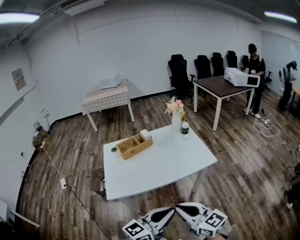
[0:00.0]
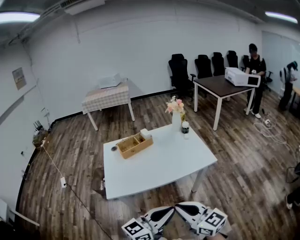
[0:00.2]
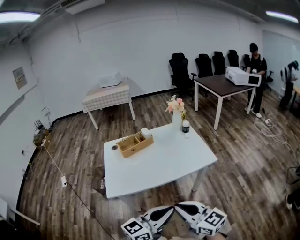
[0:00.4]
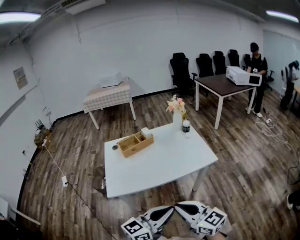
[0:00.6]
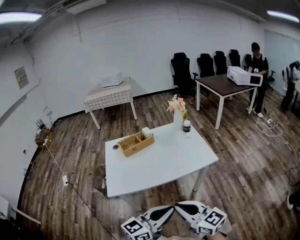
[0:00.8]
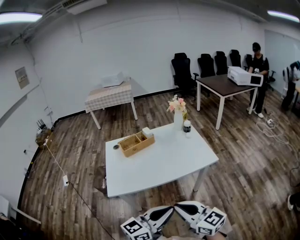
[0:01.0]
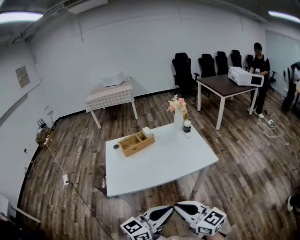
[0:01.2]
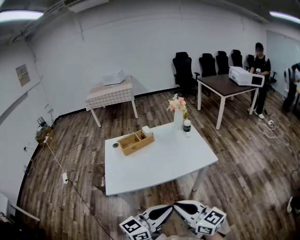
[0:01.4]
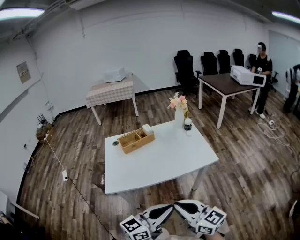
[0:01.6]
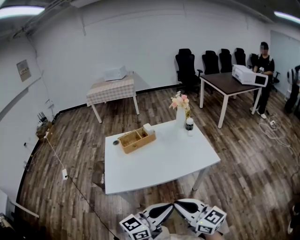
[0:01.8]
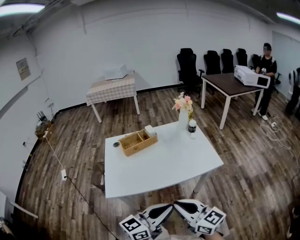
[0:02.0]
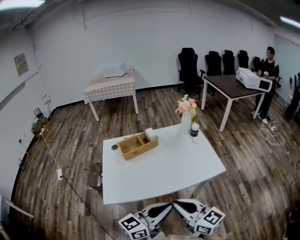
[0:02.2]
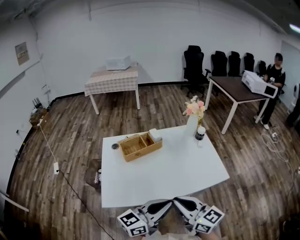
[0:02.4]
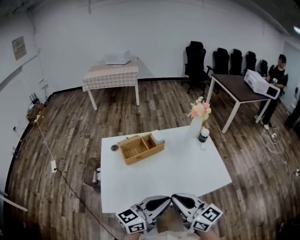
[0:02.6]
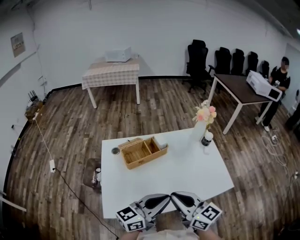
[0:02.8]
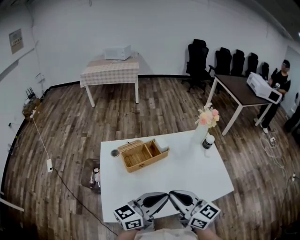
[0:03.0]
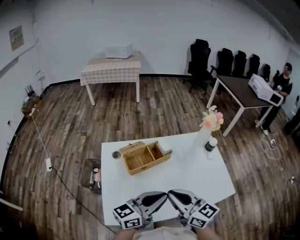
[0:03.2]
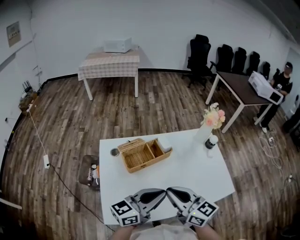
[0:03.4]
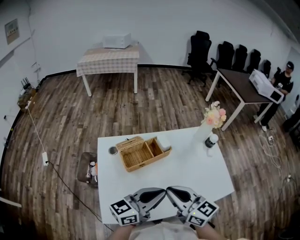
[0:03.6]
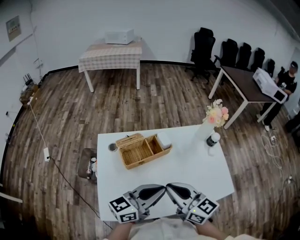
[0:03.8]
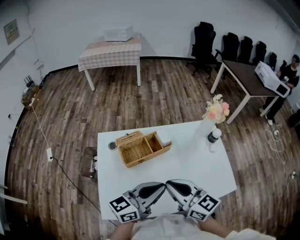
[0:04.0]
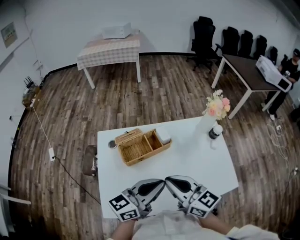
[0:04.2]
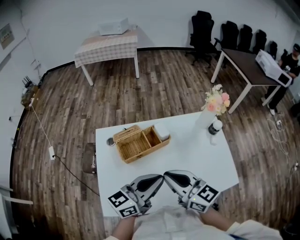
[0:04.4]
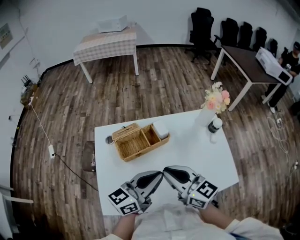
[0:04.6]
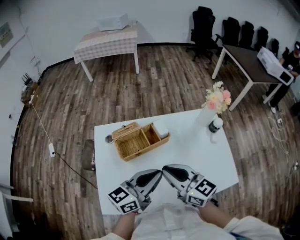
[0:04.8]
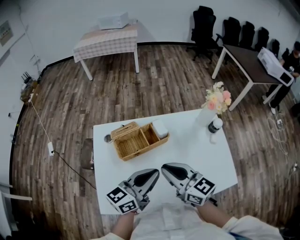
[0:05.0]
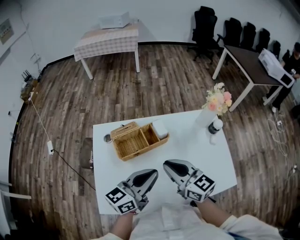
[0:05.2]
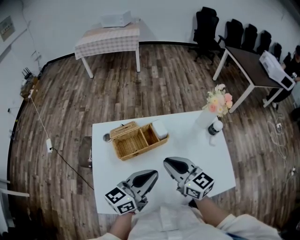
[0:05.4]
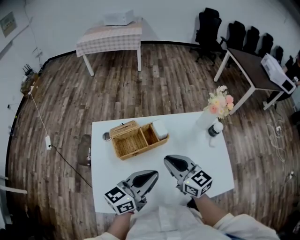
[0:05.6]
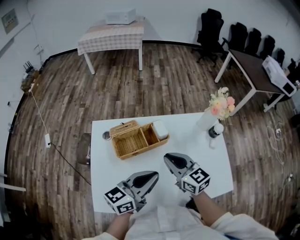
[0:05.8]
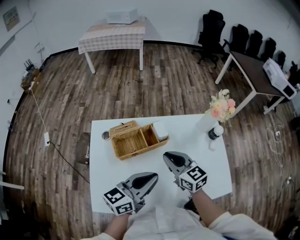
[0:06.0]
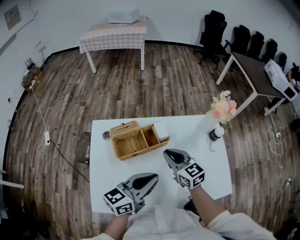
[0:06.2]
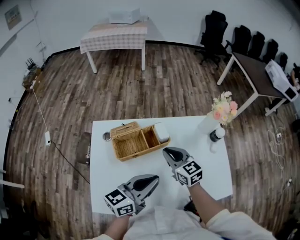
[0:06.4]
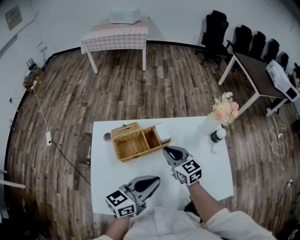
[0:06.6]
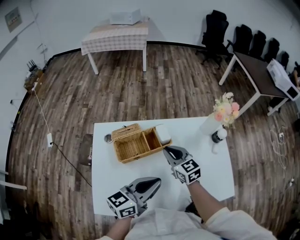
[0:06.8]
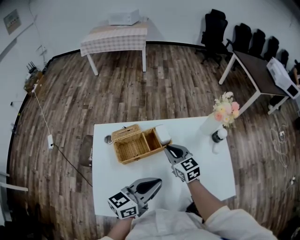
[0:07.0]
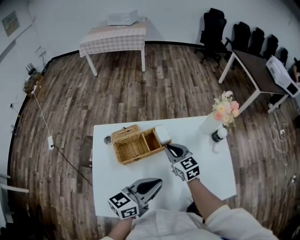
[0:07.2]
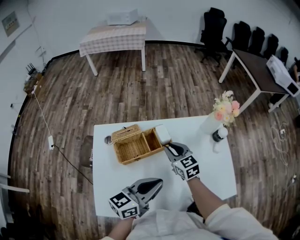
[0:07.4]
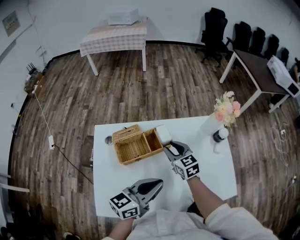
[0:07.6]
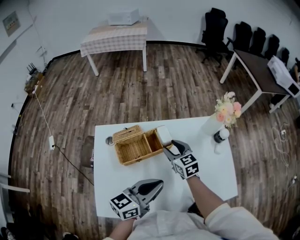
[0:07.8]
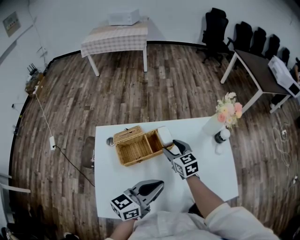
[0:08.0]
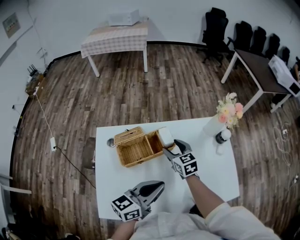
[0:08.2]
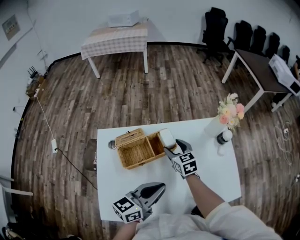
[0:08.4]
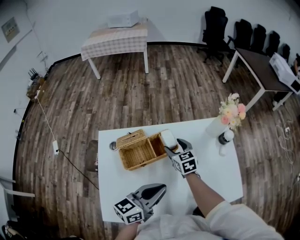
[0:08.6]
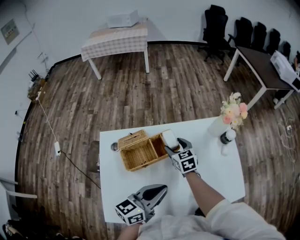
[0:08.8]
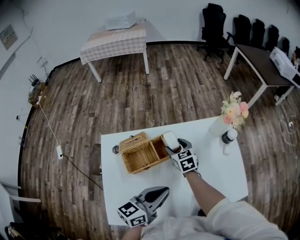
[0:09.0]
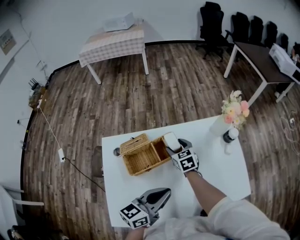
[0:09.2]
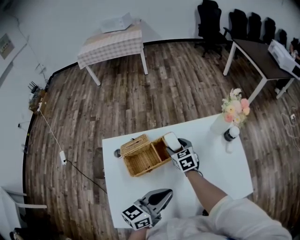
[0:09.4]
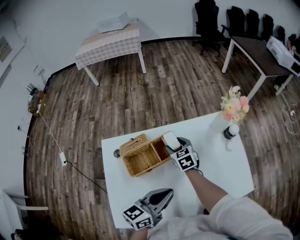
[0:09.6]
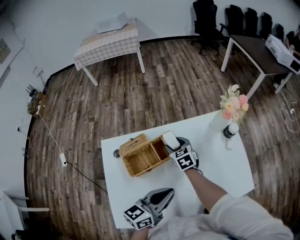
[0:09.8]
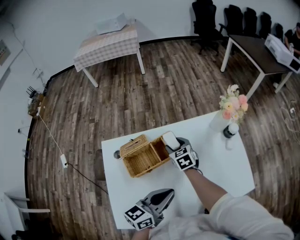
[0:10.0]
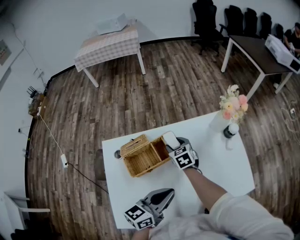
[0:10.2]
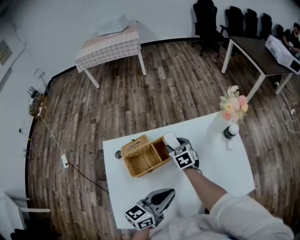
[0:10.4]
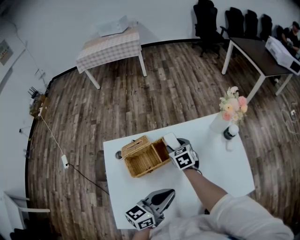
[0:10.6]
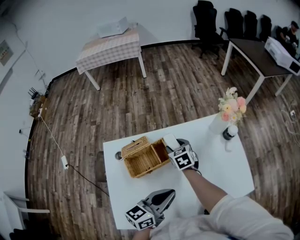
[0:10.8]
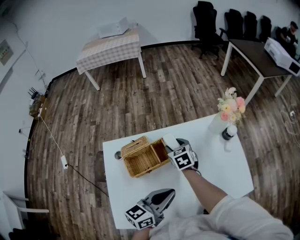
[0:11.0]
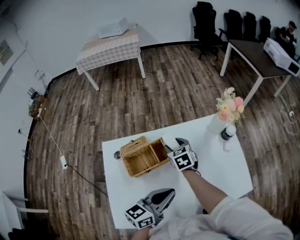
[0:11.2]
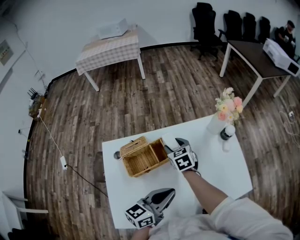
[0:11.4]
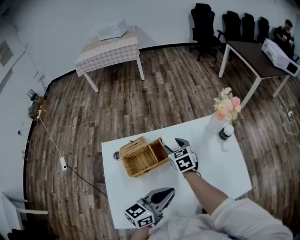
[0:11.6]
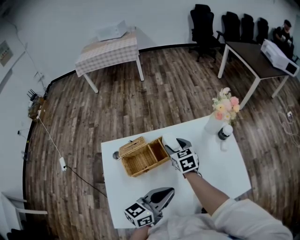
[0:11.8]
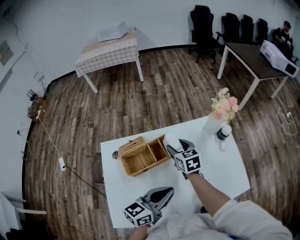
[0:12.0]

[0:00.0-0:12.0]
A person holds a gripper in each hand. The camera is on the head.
0:00.0 to 0:01.6: There are only small adjustments of the grippers.
0:01.6 to 0:03.0: Both grippers move forward and to the left, roughly 35 cm.
0:03.0 to 0:04.4: The grippers both shift forward by roughly 10 cm.
0:04.4 to 0:06.0: The right gripper moves forward and downward, about 15 cm.
0:06.0 to 0:07.6: The right gripper travels forward and downward by about 10 cm, and opens.
0:07.6 to 0:09.0: The right gripper goes approximately 10 cm forward and downward, and opens its fingers.
0:09.0 to 0:10.4: The grippers move only a little.
0:10.4 to 0:12.0: The right gripper moves upward, about 5 cm.

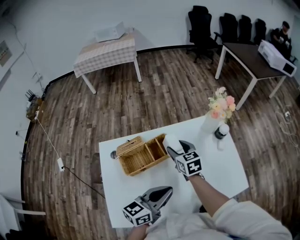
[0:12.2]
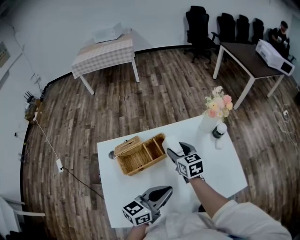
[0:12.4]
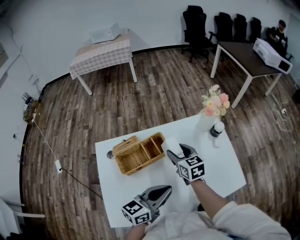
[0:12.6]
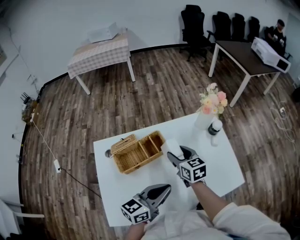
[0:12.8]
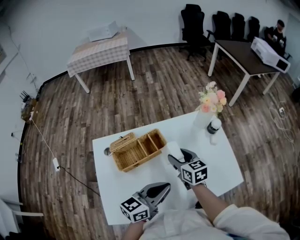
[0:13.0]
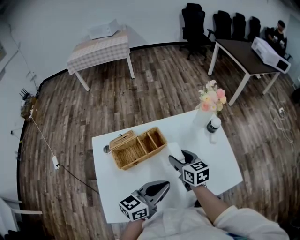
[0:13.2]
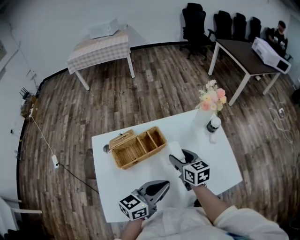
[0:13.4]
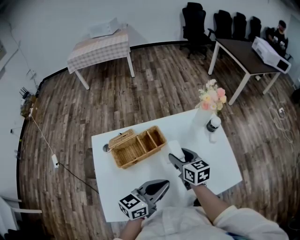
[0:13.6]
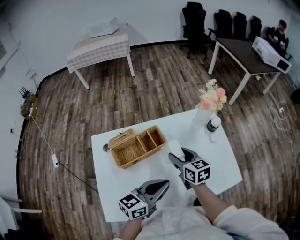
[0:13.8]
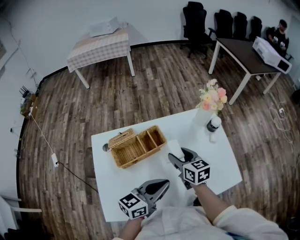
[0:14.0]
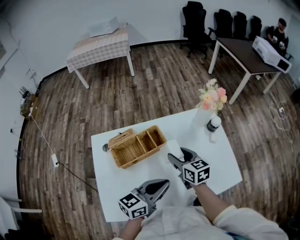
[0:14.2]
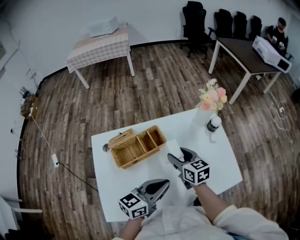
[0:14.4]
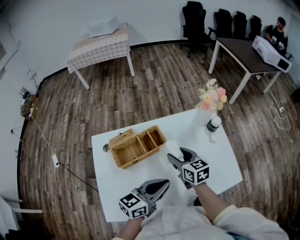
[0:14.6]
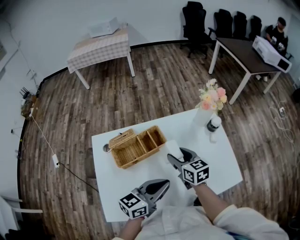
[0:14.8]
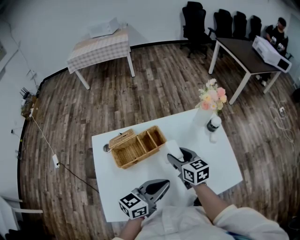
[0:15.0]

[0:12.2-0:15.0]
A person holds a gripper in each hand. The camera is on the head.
0:12.2 to 0:13.6: The right gripper heads backward and to the right, covering roughly 10 cm.
0:13.6 to 0:15.0: Neither gripper changes place.

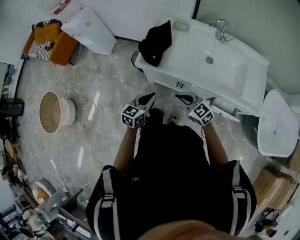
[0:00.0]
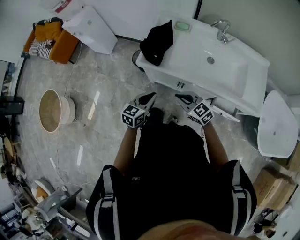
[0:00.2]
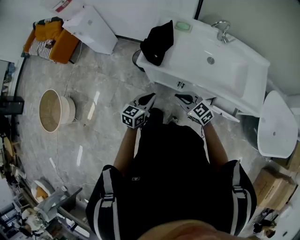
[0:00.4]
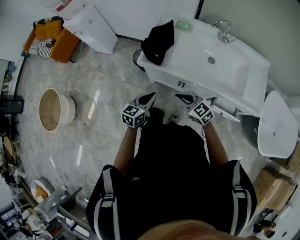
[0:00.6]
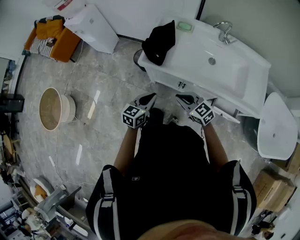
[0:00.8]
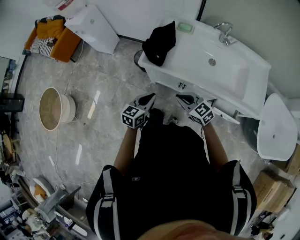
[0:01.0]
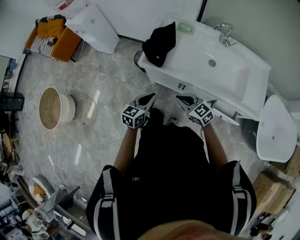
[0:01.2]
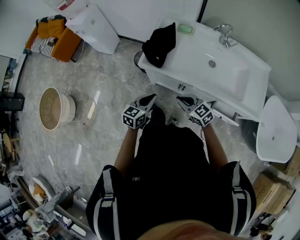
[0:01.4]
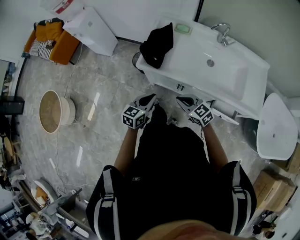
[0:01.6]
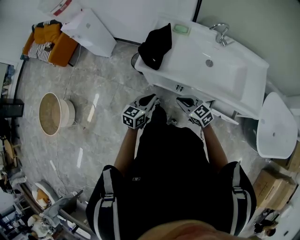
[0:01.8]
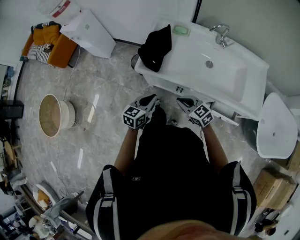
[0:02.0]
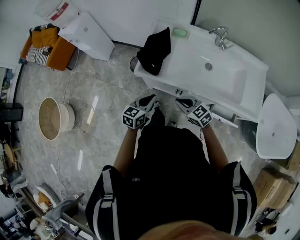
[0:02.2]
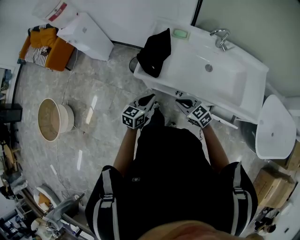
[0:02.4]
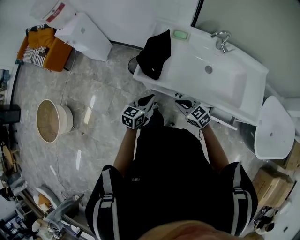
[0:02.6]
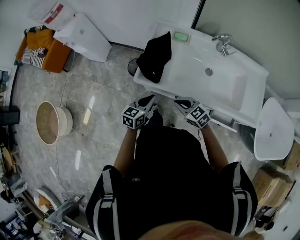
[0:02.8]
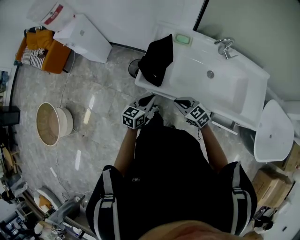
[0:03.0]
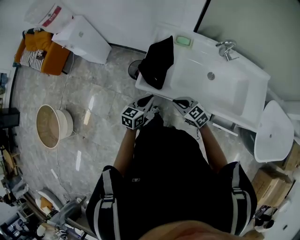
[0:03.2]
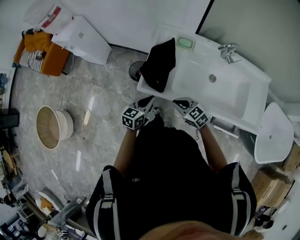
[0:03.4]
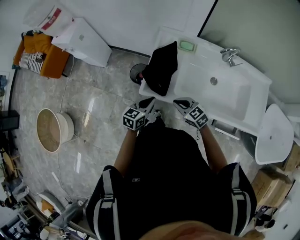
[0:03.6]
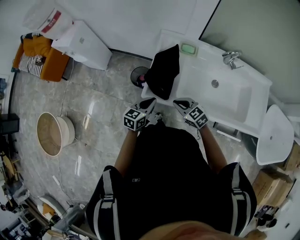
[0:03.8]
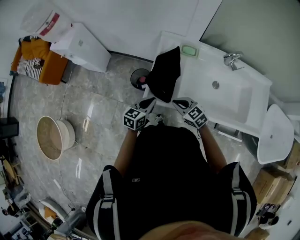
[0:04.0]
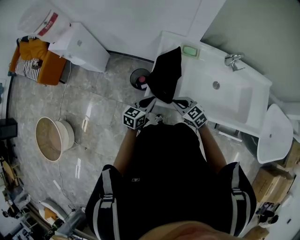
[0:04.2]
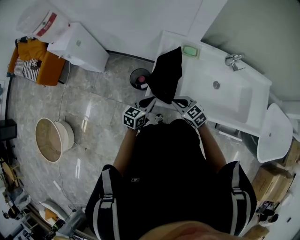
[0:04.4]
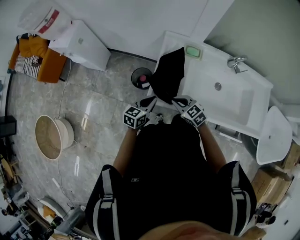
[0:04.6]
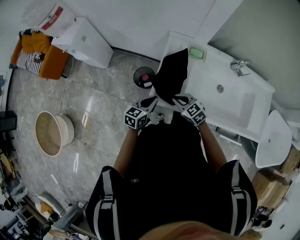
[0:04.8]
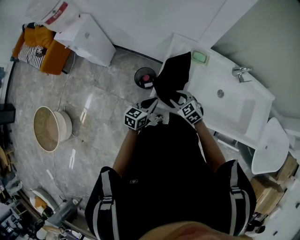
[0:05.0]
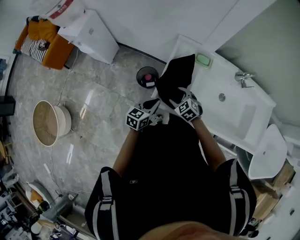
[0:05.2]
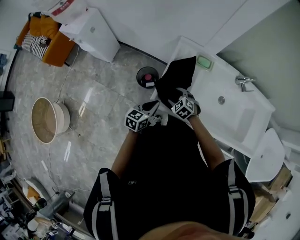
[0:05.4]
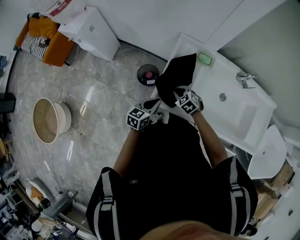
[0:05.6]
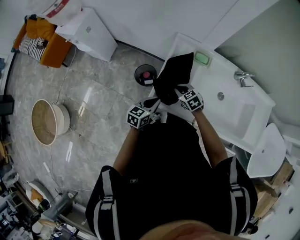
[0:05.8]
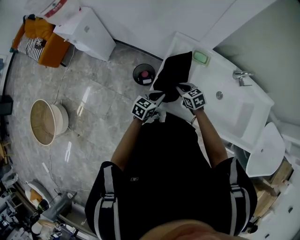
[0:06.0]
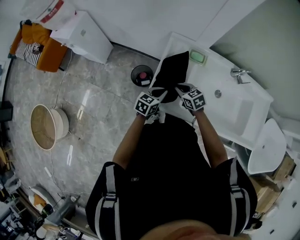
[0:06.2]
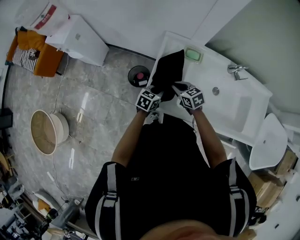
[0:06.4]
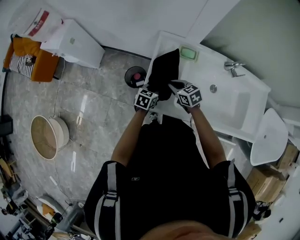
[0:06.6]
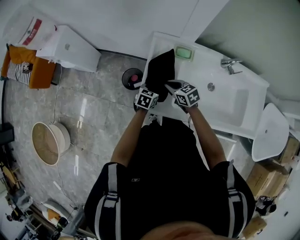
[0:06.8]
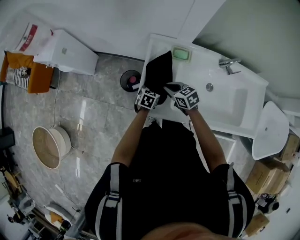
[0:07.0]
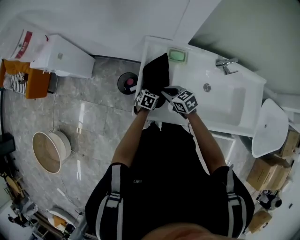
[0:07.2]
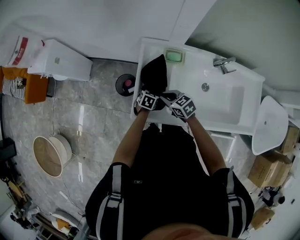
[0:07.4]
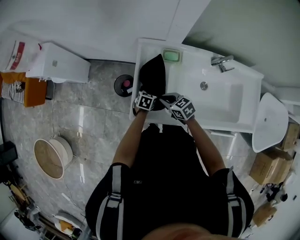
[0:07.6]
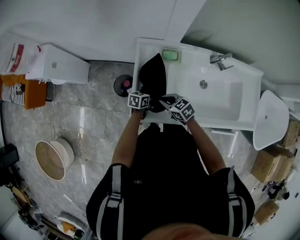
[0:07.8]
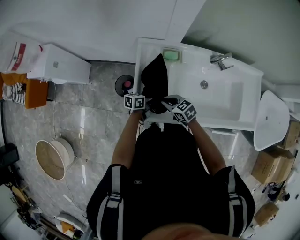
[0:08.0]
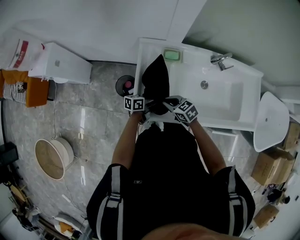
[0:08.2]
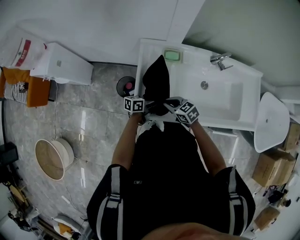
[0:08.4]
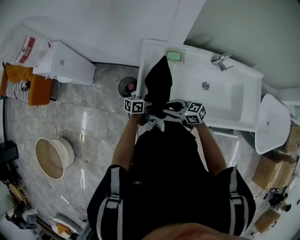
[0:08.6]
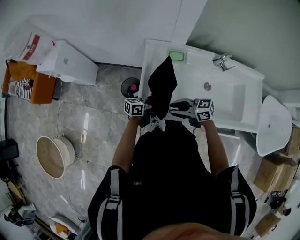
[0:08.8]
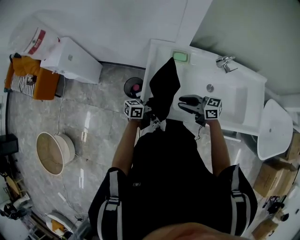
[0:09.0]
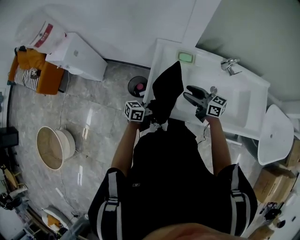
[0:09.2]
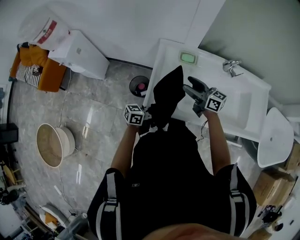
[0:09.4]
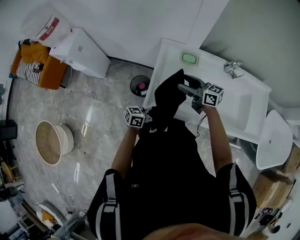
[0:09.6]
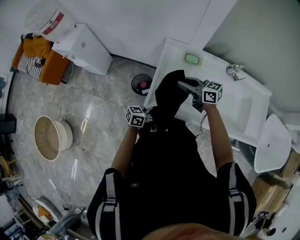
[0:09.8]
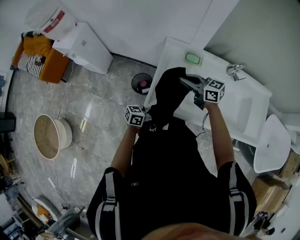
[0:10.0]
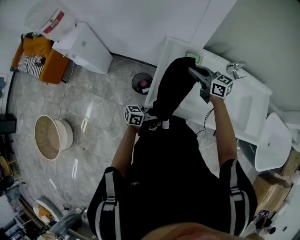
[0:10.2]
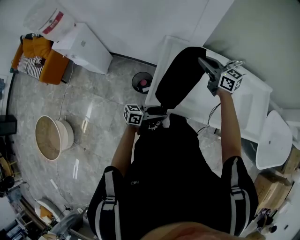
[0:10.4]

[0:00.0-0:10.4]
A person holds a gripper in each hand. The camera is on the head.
0:00.0 to 0:01.4: The grippers stay close to where they were, moving slightly.
0:01.4 to 0:03.0: The two grippers go approximately 10 cm forward.
0:03.0 to 0:04.4: Both grippers travel together forward and to the left, about 15 cm.
0:04.4 to 0:06.0: The left gripper shifts by some 5 cm, while the right gripper is displaced forward by about 10 cm, and opens, then closes again.
0:06.0 to 0:07.4: The left gripper is displaced downward, forward and to the right by roughly 15 cm, rotates approximately 30 degrees, and opens.
0:07.4 to 0:09.0: The left gripper is displaced upward by roughly 15 cm, and angles its fingers upward, by approximately 50 degrees. The right gripper changes place by approximately 15 cm, and turns by some 30 degrees.
0:09.0 to 0:10.4: The right gripper moves some 20 cm, rotates approximately 20 degrees, and opens, then closes again, while the left gripper shifts by roughly 10 cm.
